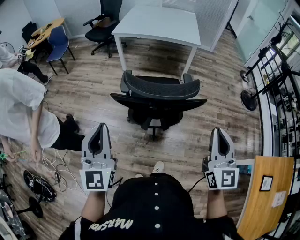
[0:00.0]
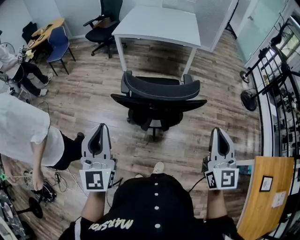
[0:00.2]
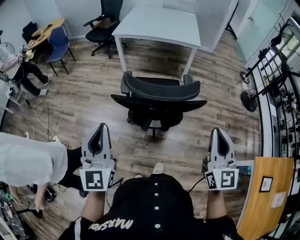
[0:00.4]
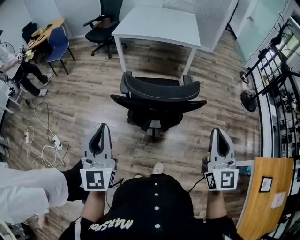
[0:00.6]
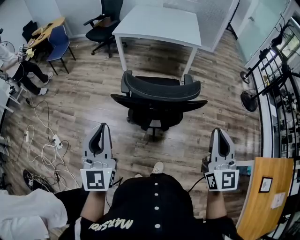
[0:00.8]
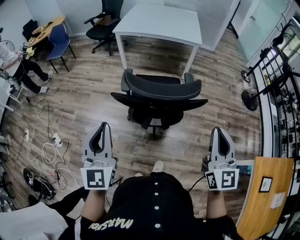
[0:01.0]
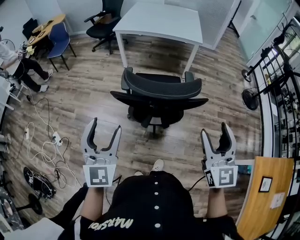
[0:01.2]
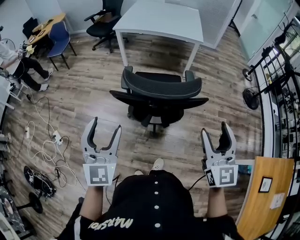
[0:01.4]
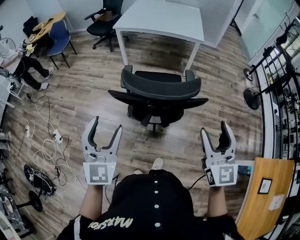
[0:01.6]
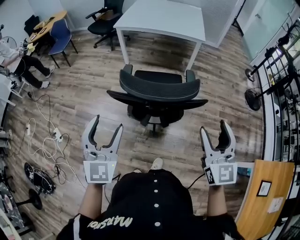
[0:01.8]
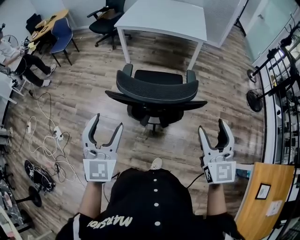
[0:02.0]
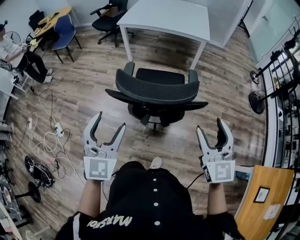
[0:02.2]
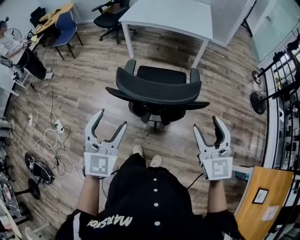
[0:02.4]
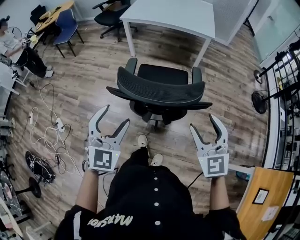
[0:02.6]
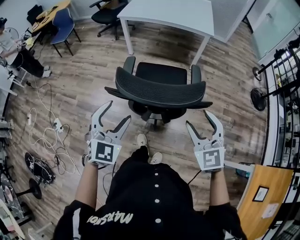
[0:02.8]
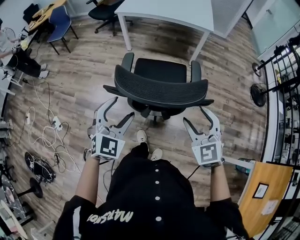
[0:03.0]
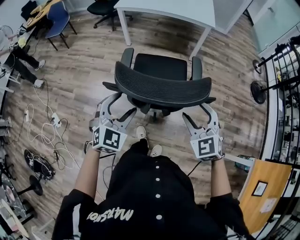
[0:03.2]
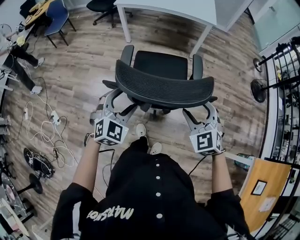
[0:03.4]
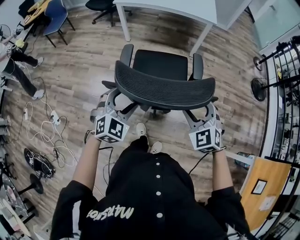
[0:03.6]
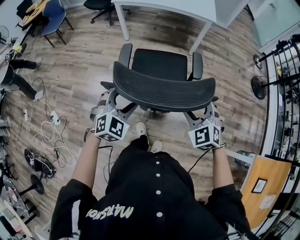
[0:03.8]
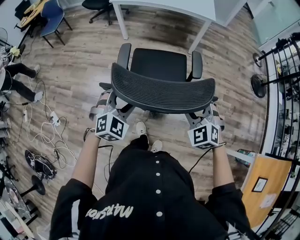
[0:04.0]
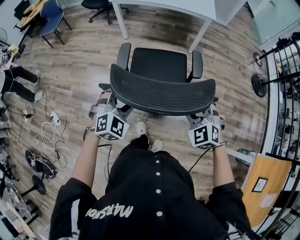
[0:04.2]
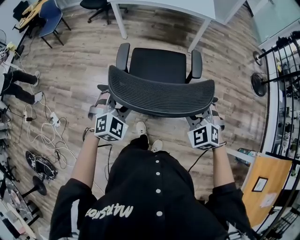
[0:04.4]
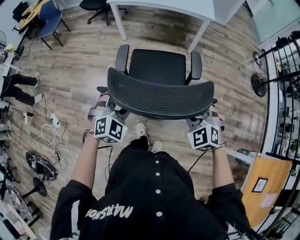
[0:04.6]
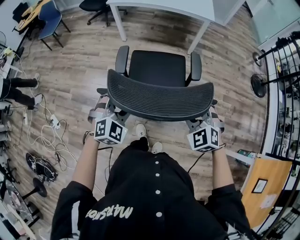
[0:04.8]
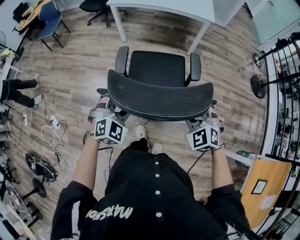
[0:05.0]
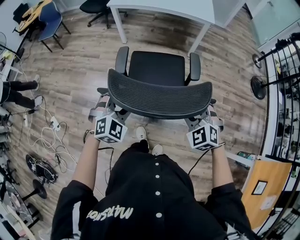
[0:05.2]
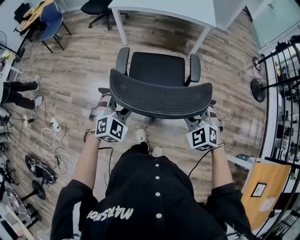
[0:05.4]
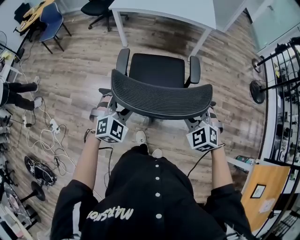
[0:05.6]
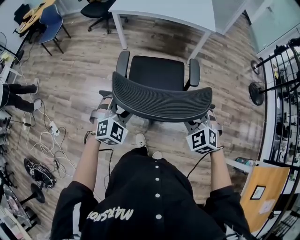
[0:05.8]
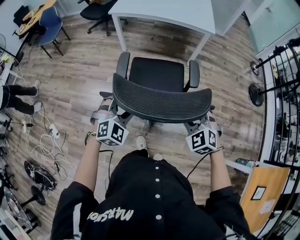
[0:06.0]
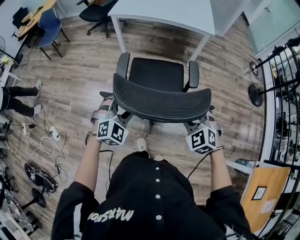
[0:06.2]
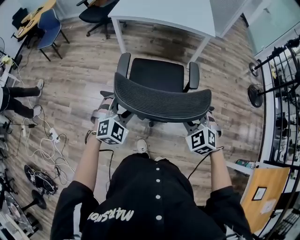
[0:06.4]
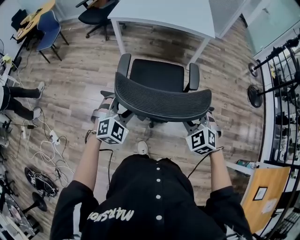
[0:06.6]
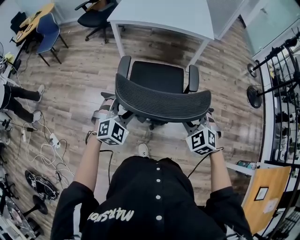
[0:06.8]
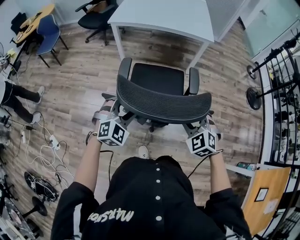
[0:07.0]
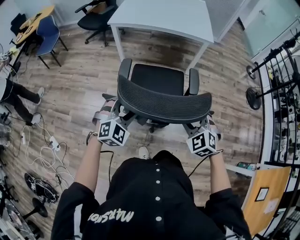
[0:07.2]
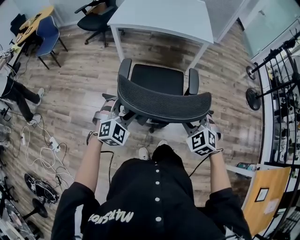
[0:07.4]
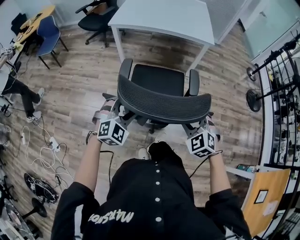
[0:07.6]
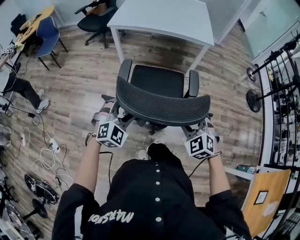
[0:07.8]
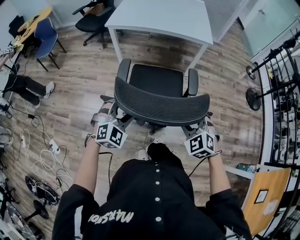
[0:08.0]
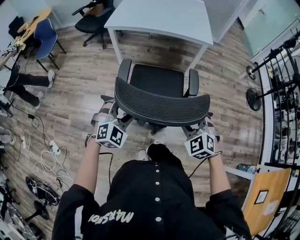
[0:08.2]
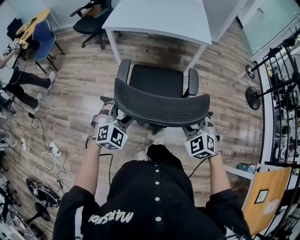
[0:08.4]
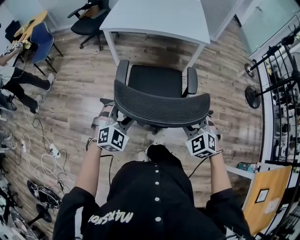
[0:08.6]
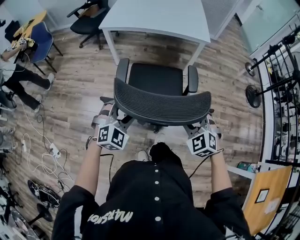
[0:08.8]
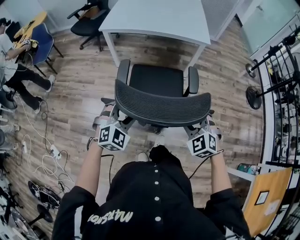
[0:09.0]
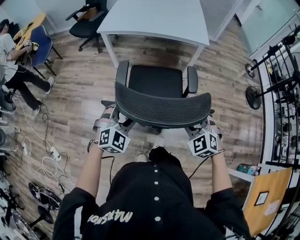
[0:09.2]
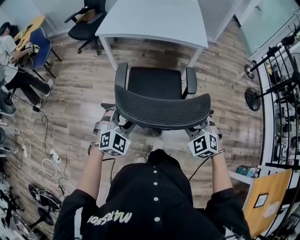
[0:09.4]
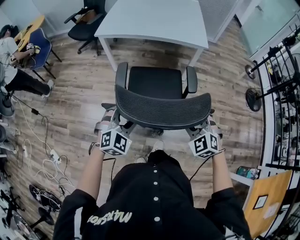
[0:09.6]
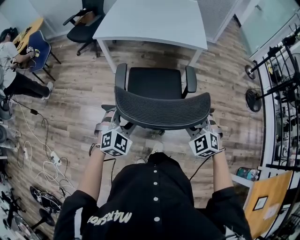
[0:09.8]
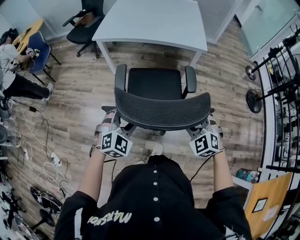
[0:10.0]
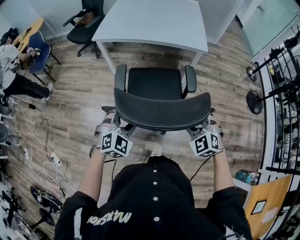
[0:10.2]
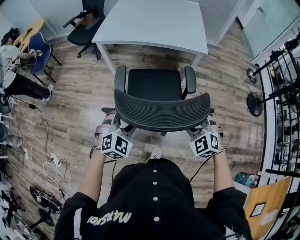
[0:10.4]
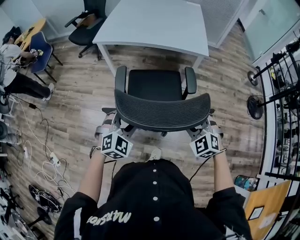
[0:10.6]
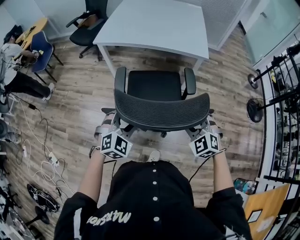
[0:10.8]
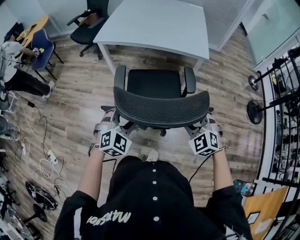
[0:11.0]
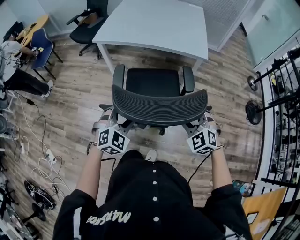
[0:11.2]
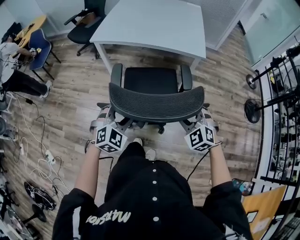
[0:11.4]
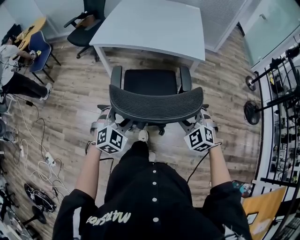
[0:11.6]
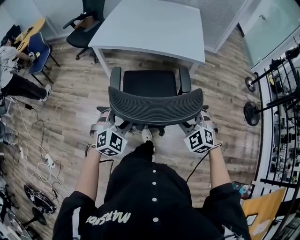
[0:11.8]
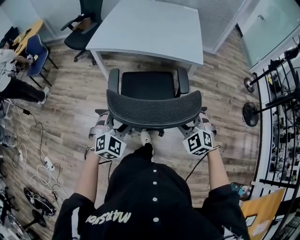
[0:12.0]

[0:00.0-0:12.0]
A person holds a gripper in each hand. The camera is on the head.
0:00.0 to 0:01.6: The left gripper changes place by about 5 cm, and opens up. Meanwhile the right gripper opens its fingers.
0:01.6 to 0:03.0: The right gripper moves downward and forward, about 15 cm, and rotates approximately 30 degrees; the left gripper travels downward, forward and to the right by some 15 cm, and changes its angle by some 30 degrees.
0:03.0 to 0:04.4: Both grippers travel together downward and forward, approximately 10 cm. The left gripper swivels approximately 20 degrees.
0:04.4 to 0:06.0: Both grippers travel together forward, approximately 5 cm.
0:06.0 to 0:07.6: The left gripper travels forward by about 5 cm. The right gripper shifts by roughly 5 cm.
0:07.6 to 0:09.0: The right gripper heads forward, covering roughly 5 cm. The left gripper shifts by roughly 5 cm.
0:09.0 to 0:10.4: The grippers both shift forward by some 10 cm.
0:10.4 to 0:12.0: Both grippers move forward, roughly 5 cm.

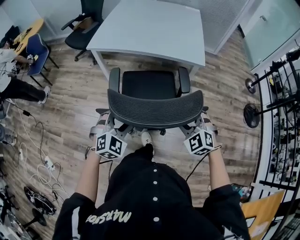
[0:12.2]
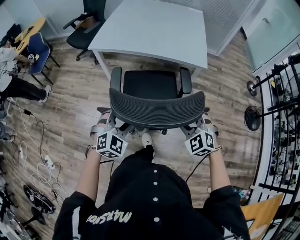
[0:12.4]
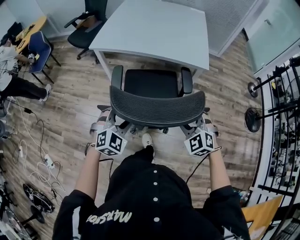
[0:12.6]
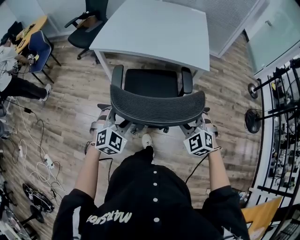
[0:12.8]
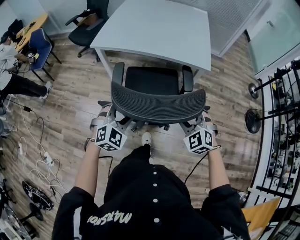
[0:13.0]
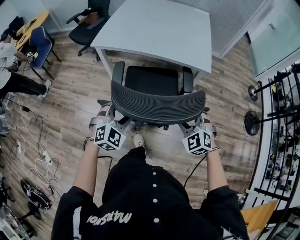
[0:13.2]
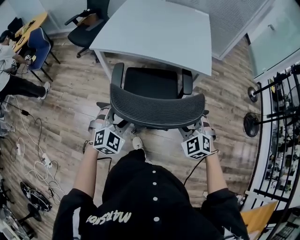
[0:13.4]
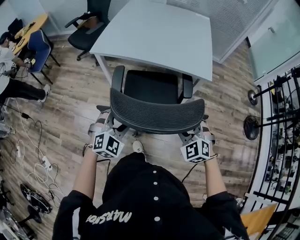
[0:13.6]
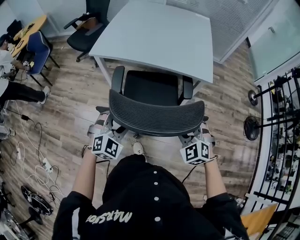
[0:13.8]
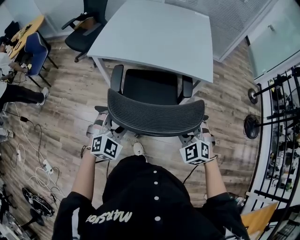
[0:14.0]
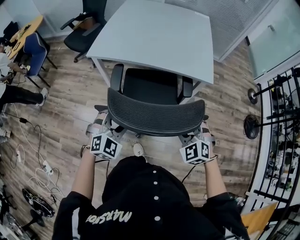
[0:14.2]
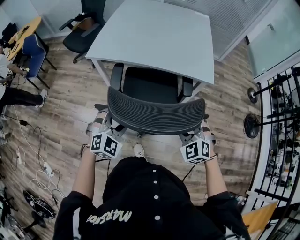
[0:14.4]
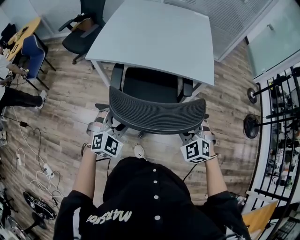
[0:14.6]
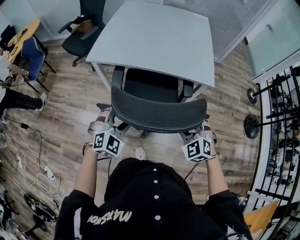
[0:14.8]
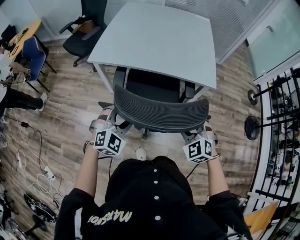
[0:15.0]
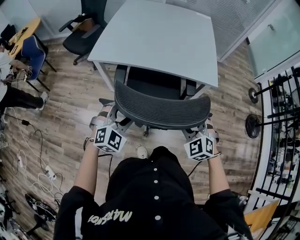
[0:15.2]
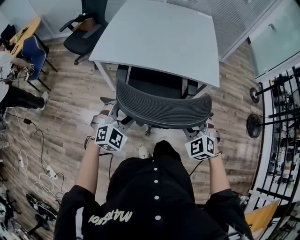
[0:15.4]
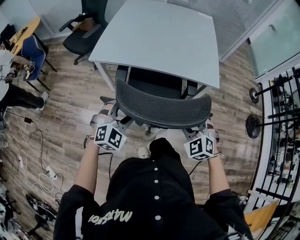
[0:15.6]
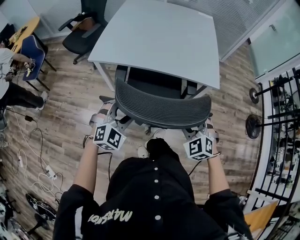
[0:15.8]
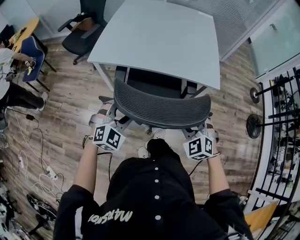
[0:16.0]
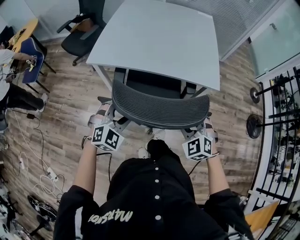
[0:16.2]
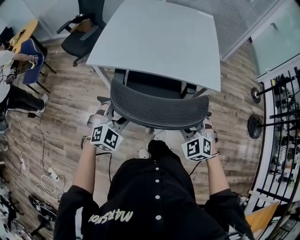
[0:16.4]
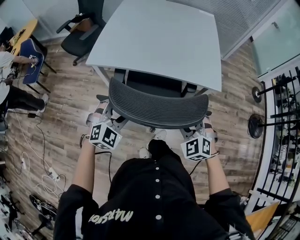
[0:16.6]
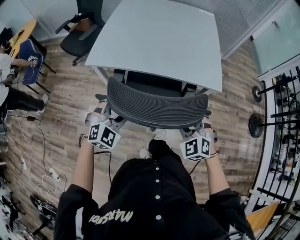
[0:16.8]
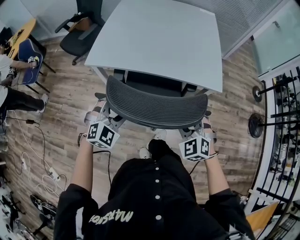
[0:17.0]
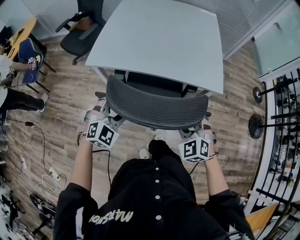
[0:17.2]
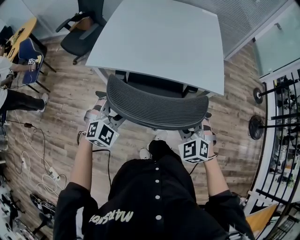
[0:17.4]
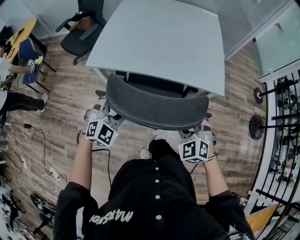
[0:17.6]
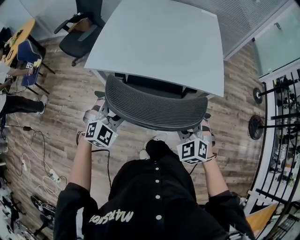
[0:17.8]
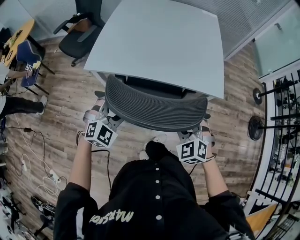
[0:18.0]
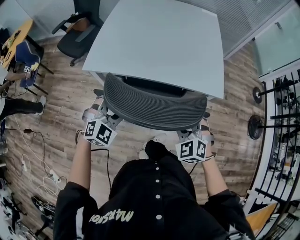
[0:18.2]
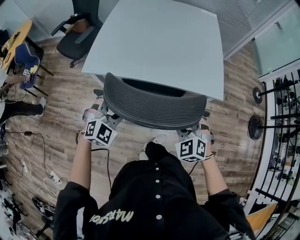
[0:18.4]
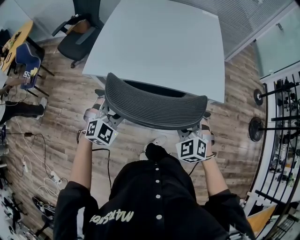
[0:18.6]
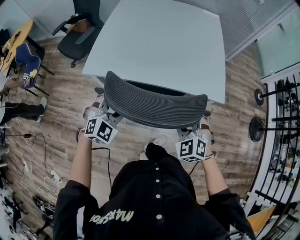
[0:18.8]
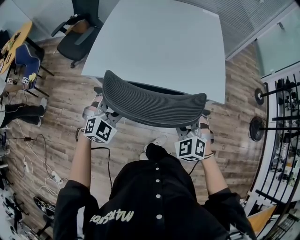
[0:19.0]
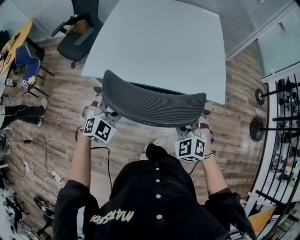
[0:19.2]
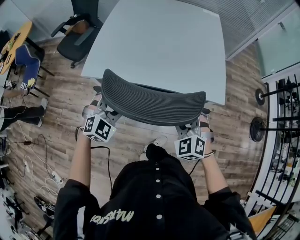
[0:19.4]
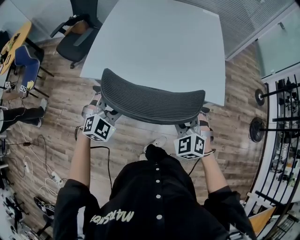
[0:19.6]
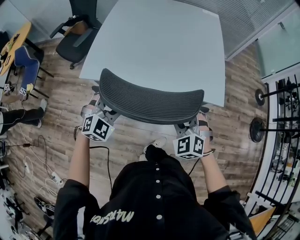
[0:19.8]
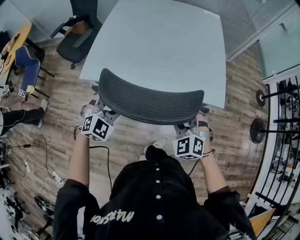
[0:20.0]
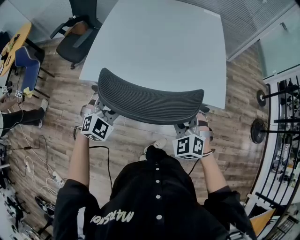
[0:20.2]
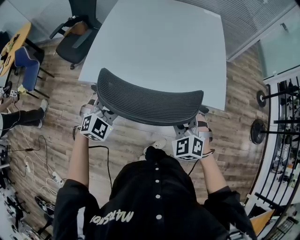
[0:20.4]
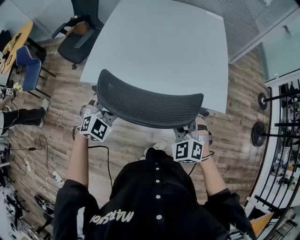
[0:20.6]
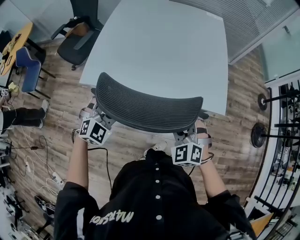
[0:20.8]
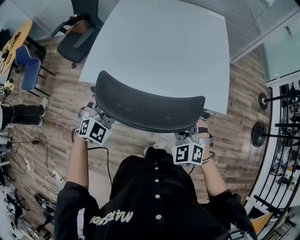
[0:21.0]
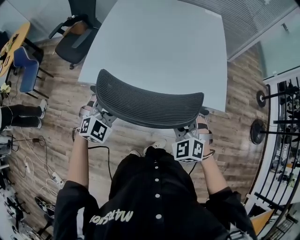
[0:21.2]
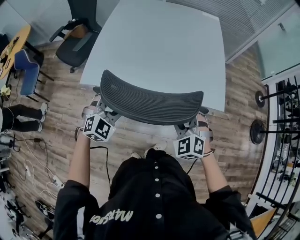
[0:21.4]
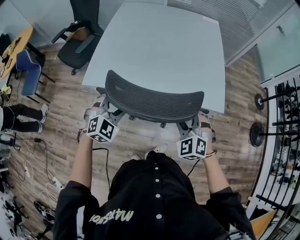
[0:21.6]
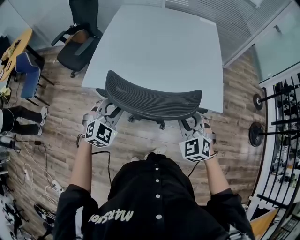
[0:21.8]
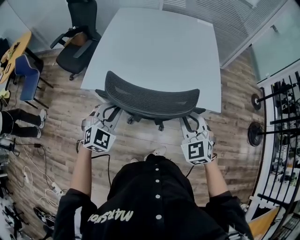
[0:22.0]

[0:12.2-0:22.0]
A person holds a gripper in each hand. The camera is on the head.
0:12.2 to 0:13.6: The grippers both shift forward by about 5 cm.
0:13.6 to 0:15.0: The two grippers go some 5 cm forward.
0:15.0 to 0:16.4: The two grippers go some 5 cm forward.
0:16.4 to 0:17.8: The left gripper heads forward, covering about 5 cm.
0:17.8 to 0:19.2: Both grippers move forward, approximately 5 cm.
0:19.2 to 0:20.6: The left gripper changes place by approximately 5 cm.
0:20.6 to 0:22.0: The right gripper moves upward, about 5 cm, and closes up, while the left gripper closes its fingers.

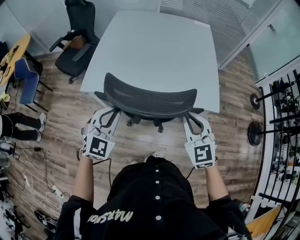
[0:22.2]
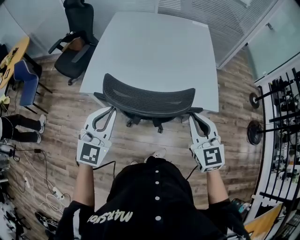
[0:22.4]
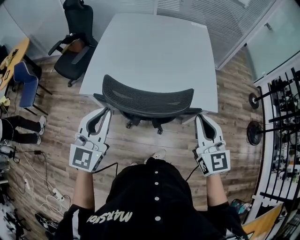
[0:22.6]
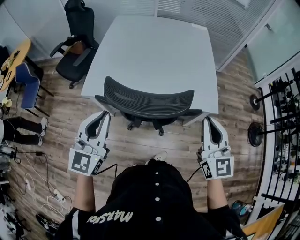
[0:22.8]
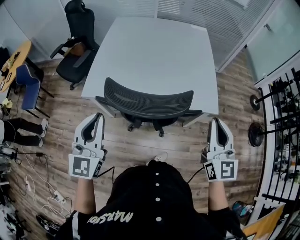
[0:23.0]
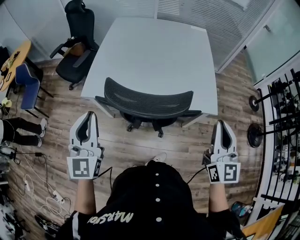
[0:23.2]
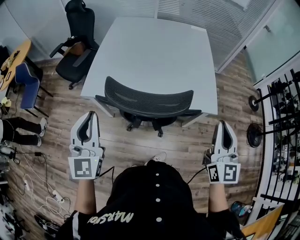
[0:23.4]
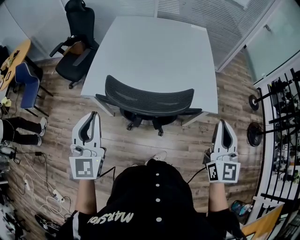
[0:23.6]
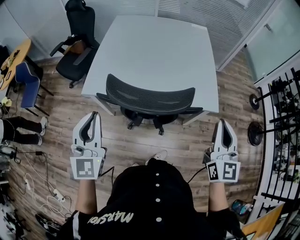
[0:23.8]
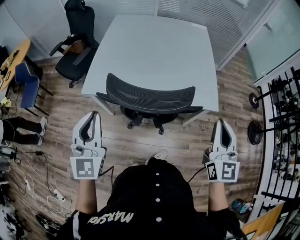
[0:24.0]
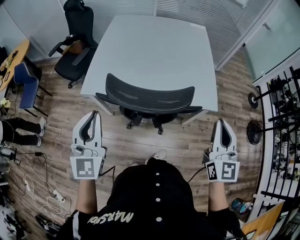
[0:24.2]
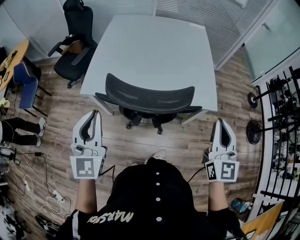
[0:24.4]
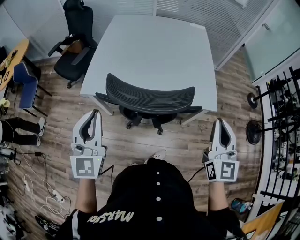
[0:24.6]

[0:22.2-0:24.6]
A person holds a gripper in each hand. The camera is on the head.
0:22.2 to 0:23.4: The right gripper heads to the right and upward, covering about 15 cm, and swivels roughly 40 degrees, while the left gripper travels upward and to the left by roughly 15 cm, and rotates about 40 degrees.
0:23.4 to 0:24.6: The grippers stay close to where they were, moving slightly.
